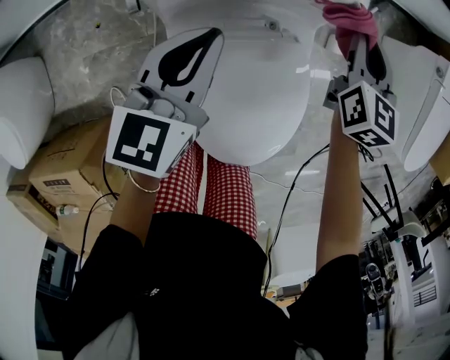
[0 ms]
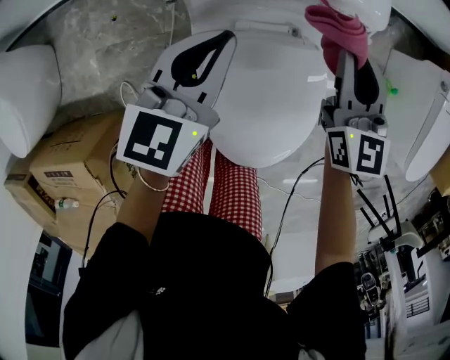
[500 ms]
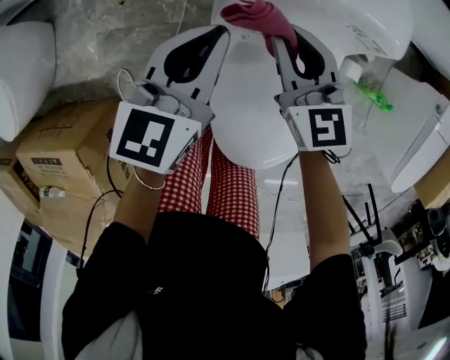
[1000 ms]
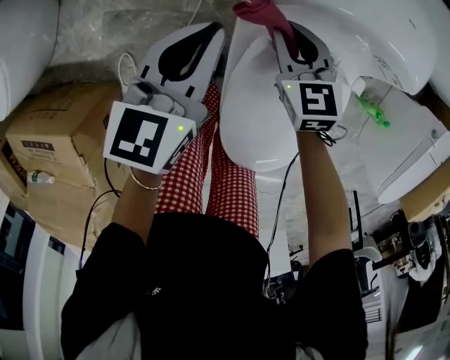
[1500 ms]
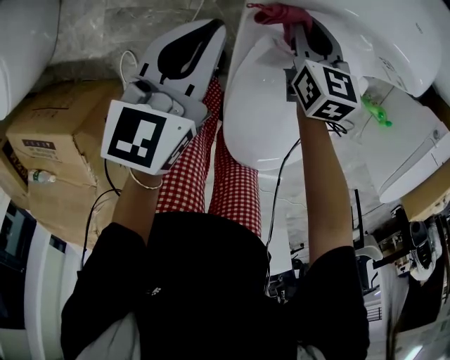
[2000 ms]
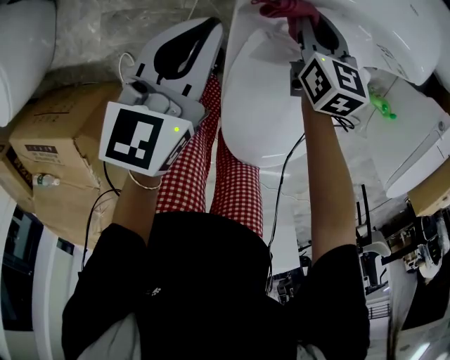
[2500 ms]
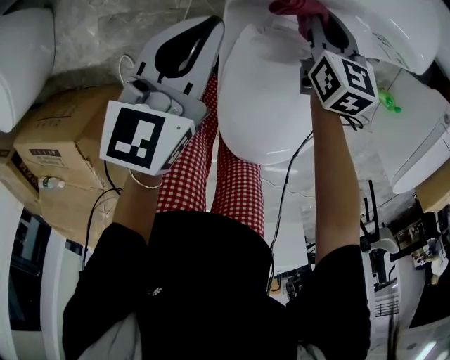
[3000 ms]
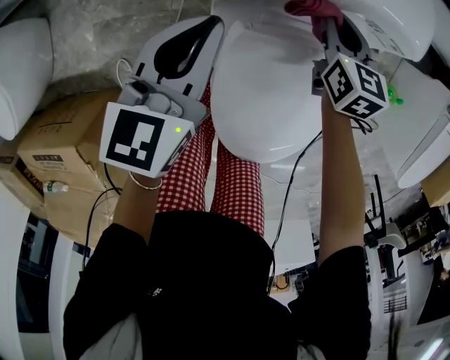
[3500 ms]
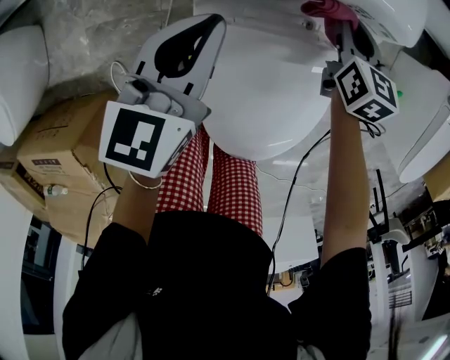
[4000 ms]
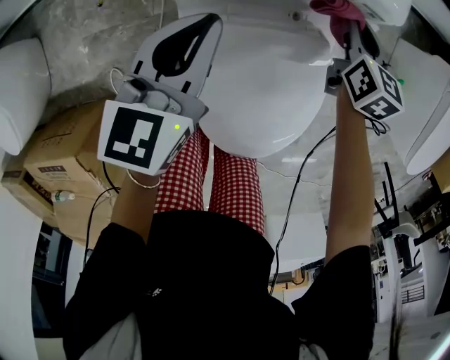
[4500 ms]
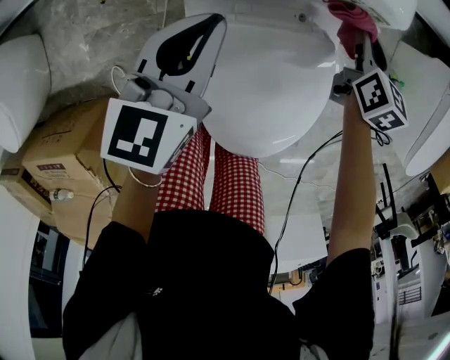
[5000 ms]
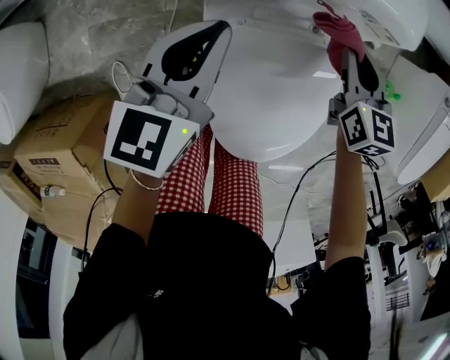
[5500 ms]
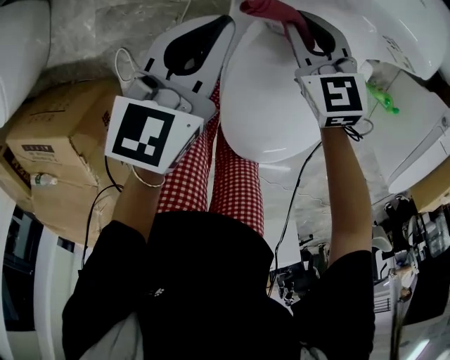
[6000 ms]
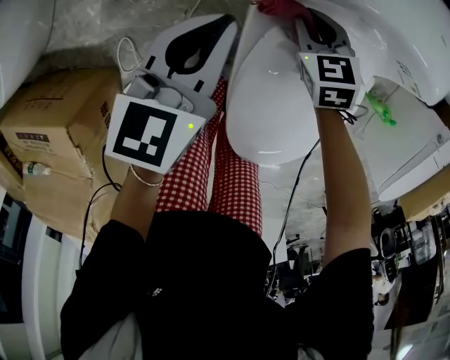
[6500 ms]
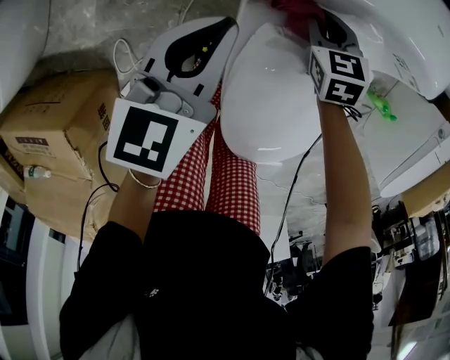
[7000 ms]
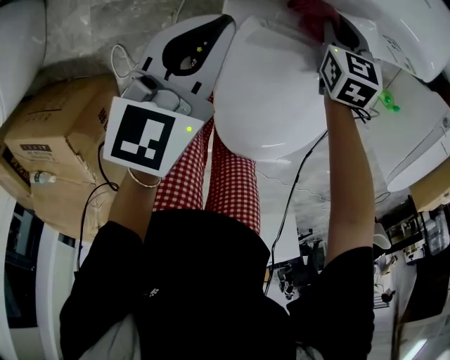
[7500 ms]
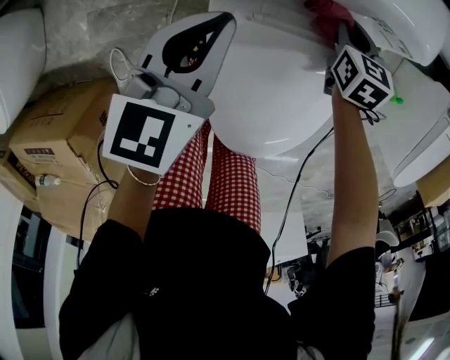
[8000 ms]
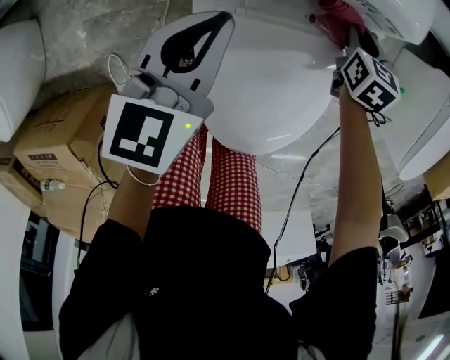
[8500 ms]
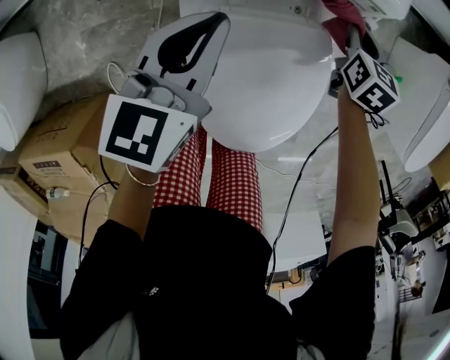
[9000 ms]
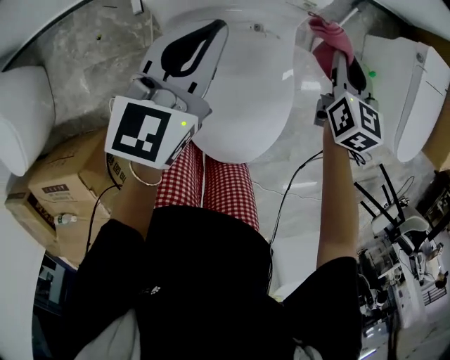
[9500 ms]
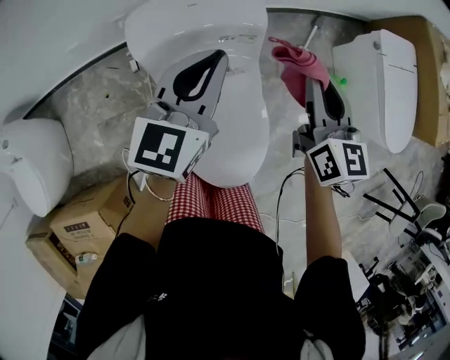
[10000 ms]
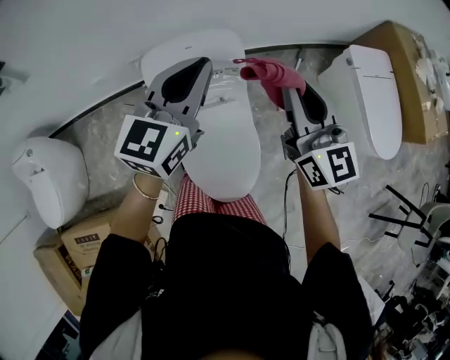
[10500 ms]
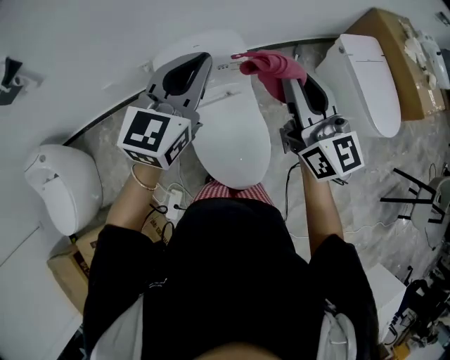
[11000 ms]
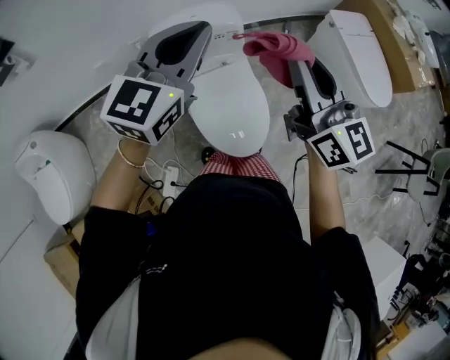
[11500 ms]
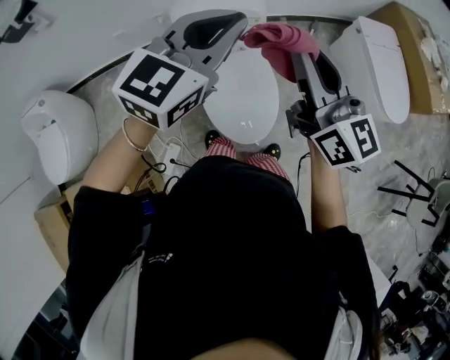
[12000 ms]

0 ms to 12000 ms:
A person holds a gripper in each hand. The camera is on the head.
0 ms to 2000 ms: The left gripper changes place by approximately 20 cm. The right gripper changes place by roughly 30 cm, and changes its angle by some 30 degrees.
2000 ms to 4000 ms: The left gripper shifts about 10 cm to the right. Meanwhile the right gripper heads to the right, covering roughly 20 cm.
4000 ms to 6000 ms: The right gripper moves about 20 cm, and swivels some 40 degrees, while the left gripper changes place by approximately 5 cm.
6000 ms to 8000 ms: The left gripper shifts by some 5 cm. The right gripper shifts some 20 cm to the right, and rotates some 40 degrees.
8000 ms to 10000 ms: Both grippers travel together upward and to the right, about 35 cm. The left gripper turns by about 20 degrees, while the right gripper tilts its fingers roughly 40 degrees upward.
10000 ms to 12000 ms: The two grippers go roughly 30 cm upward and backward. The left gripper turns by some 20 degrees. Meanwhile the right gripper rotates approximately 30 degrees.

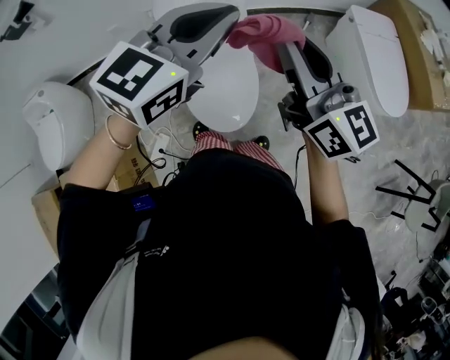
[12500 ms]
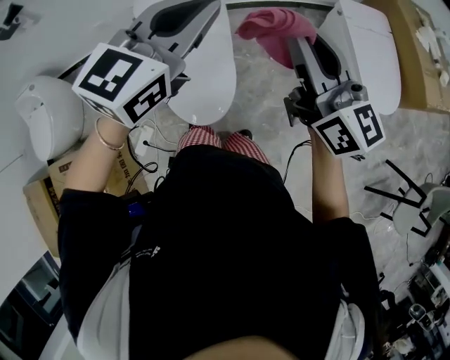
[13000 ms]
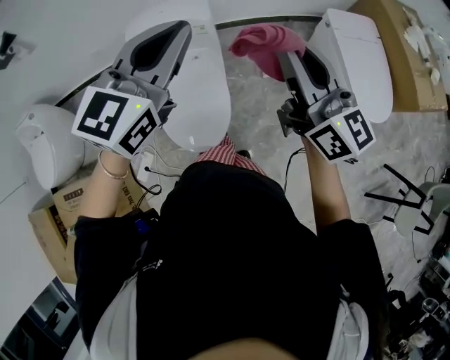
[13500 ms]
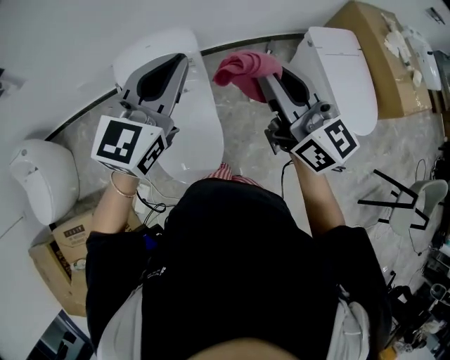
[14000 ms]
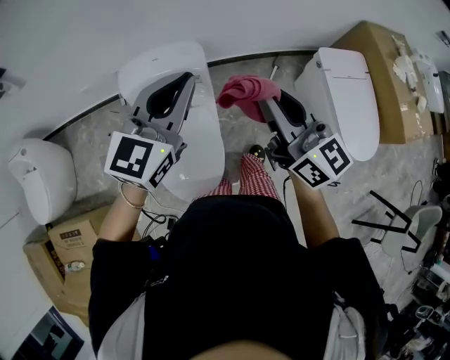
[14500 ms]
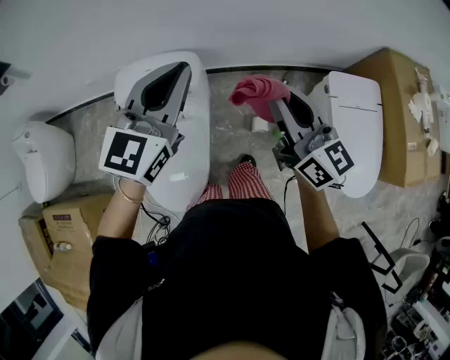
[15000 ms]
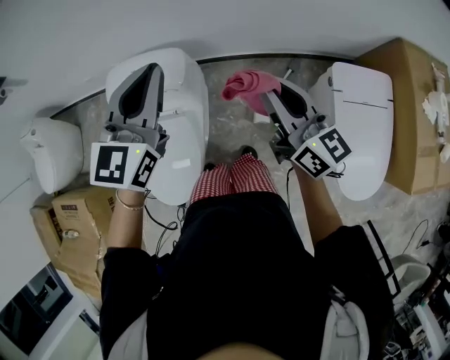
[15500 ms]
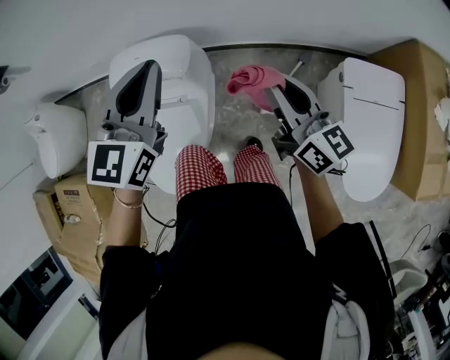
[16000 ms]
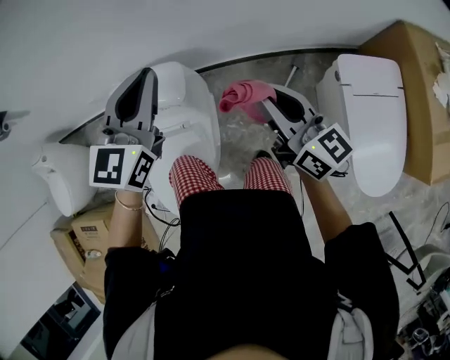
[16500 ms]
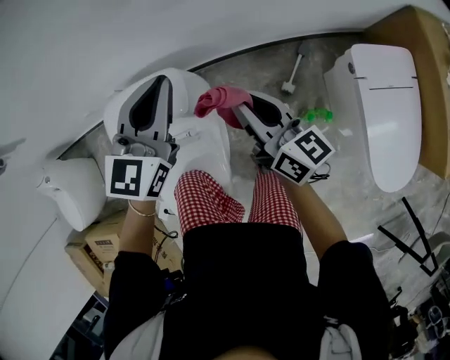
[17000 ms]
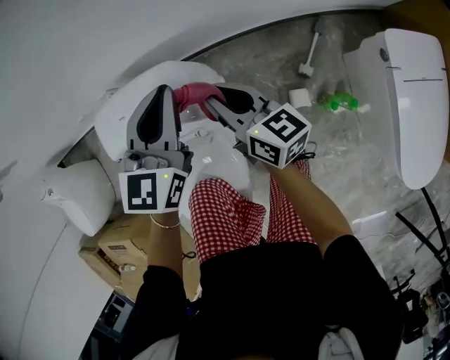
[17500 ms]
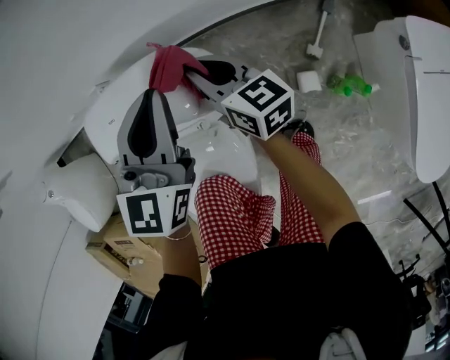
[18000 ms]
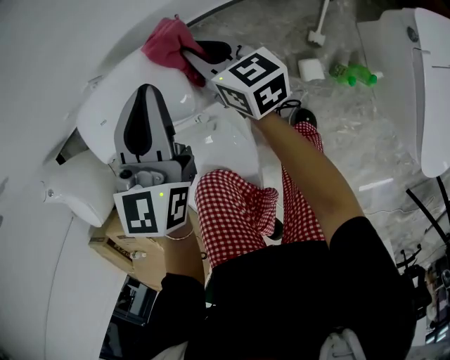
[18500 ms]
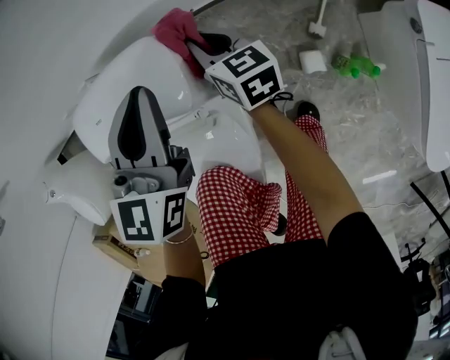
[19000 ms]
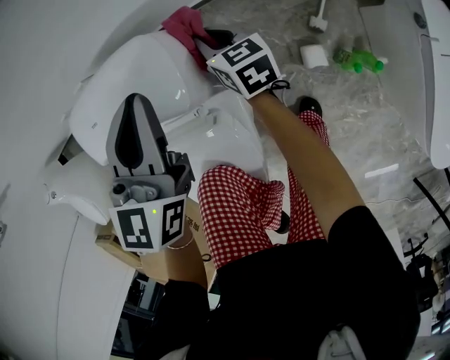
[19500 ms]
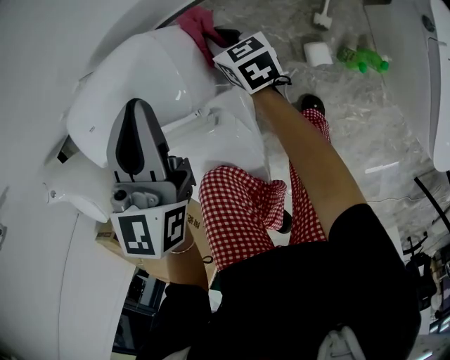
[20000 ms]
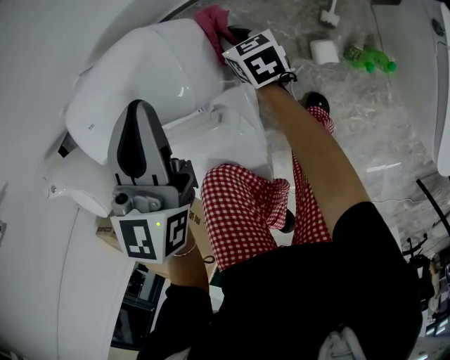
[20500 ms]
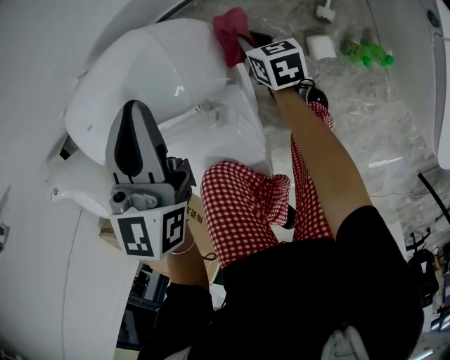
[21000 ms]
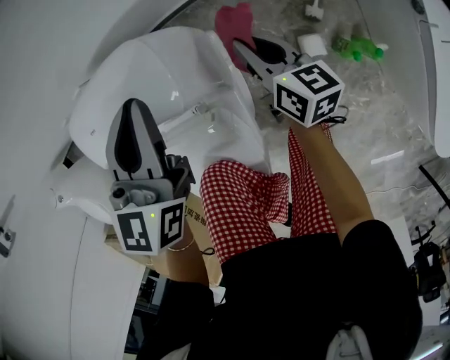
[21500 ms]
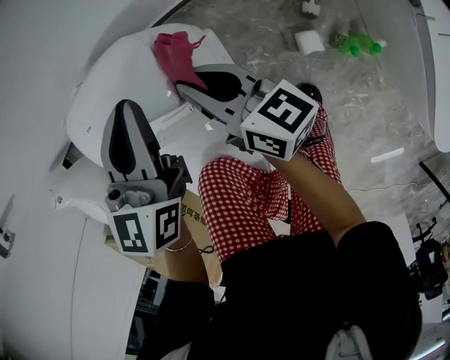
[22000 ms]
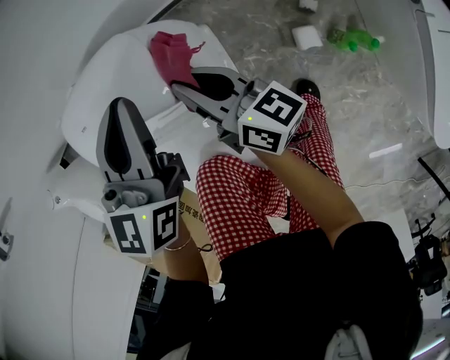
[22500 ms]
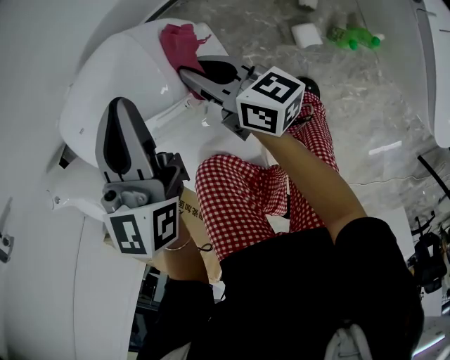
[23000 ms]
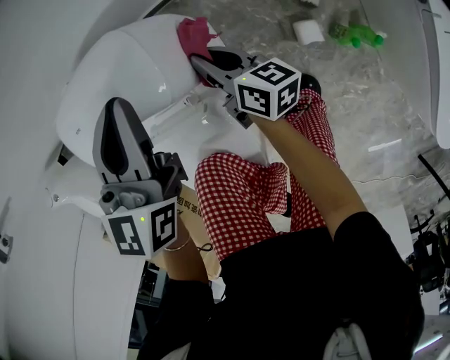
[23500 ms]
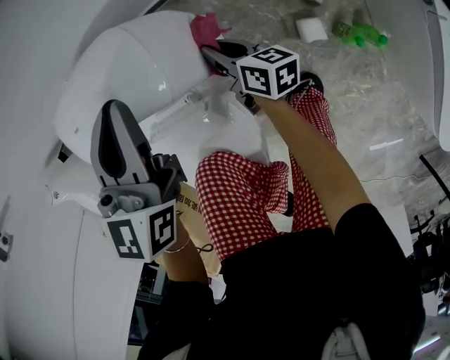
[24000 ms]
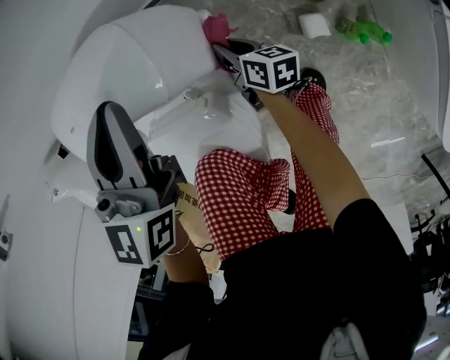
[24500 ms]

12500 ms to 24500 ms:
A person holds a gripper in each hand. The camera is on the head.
12500 ms to 14500 ms: The left gripper is displaced forward by some 15 cm, while the right gripper moves forward and to the right, some 20 cm.
14500 ms to 16500 ms: The right gripper shifts approximately 25 cm to the right, forward and downward, while the left gripper shifts some 20 cm forward and to the right.
16500 ms to 18500 ms: The right gripper shifts roughly 40 cm downward, forward and to the left, and rotates about 20 degrees; the left gripper goes some 30 cm downward and forward.
18500 ms to 20500 ms: The right gripper travels downward by roughly 20 cm, and turns by approximately 30 degrees.
20500 ms to 22500 ms: The right gripper goes approximately 20 cm upward, and points its fingers roughly 40 degrees further upward.
22500 ms to 24500 ms: The right gripper goes approximately 20 cm downward, and turns by about 30 degrees.

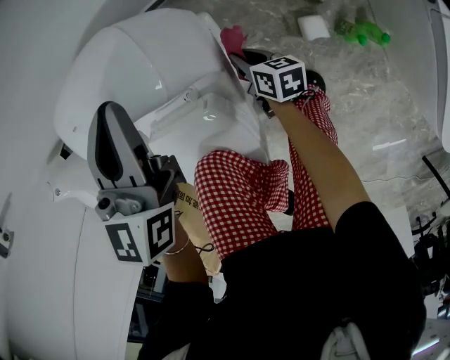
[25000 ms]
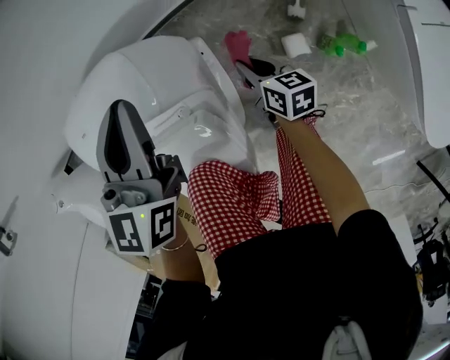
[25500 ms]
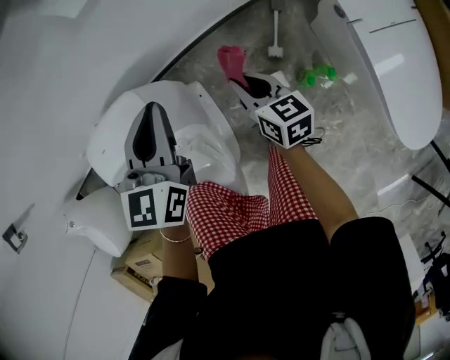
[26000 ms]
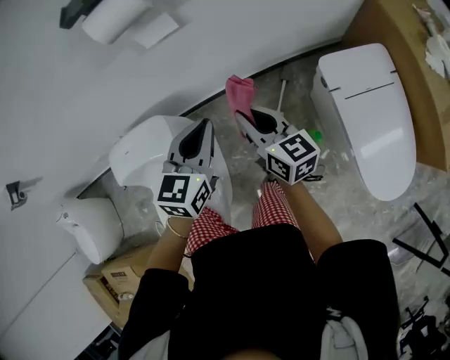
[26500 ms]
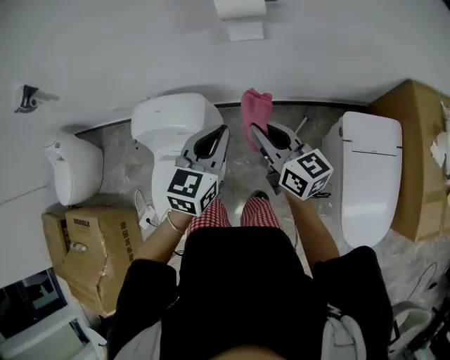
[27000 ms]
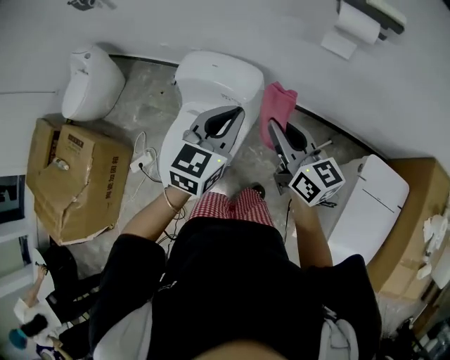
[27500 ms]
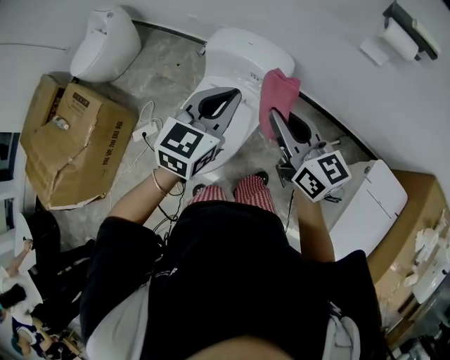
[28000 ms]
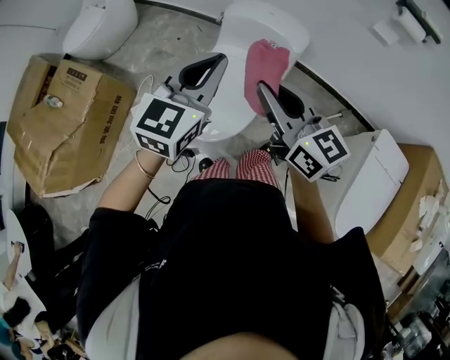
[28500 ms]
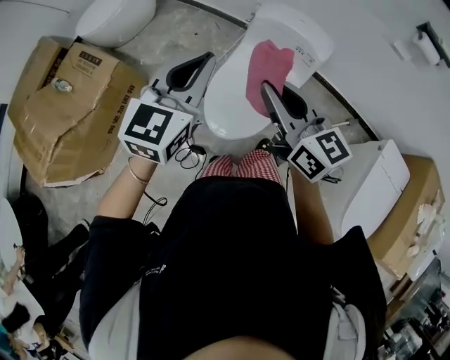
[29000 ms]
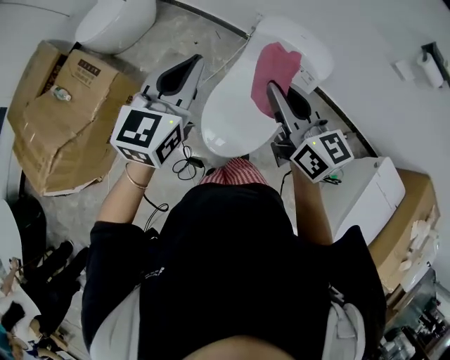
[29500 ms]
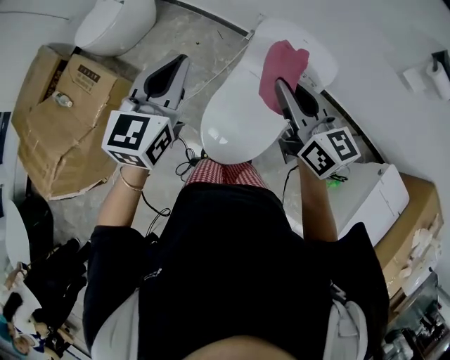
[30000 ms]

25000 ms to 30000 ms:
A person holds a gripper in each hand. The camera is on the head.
25000 ms to 27500 ms: The left gripper travels upward by roughly 25 cm. The right gripper travels upward by some 60 cm, and tips its fingers upward by some 40 degrees.
27500 ms to 30000 ms: Both grippers move to the left, some 40 cm. The left gripper turns by approximately 20 degrees.
